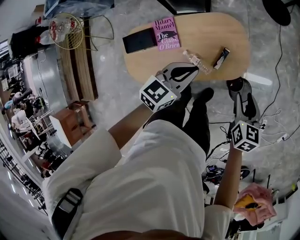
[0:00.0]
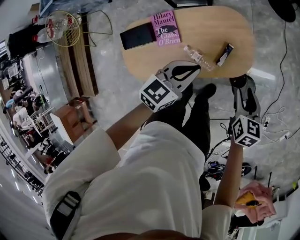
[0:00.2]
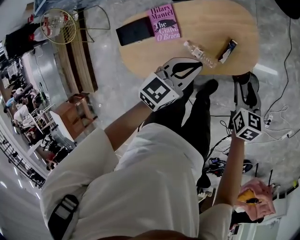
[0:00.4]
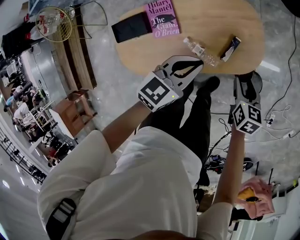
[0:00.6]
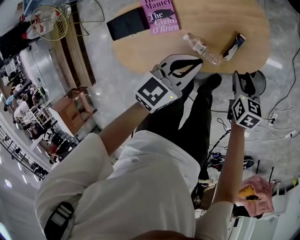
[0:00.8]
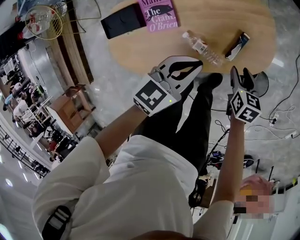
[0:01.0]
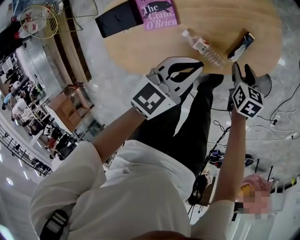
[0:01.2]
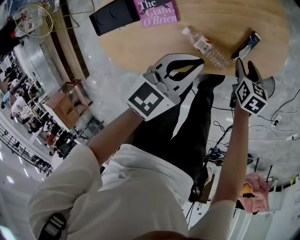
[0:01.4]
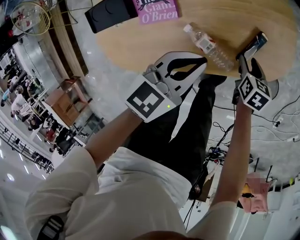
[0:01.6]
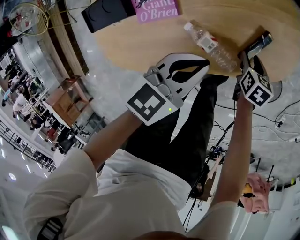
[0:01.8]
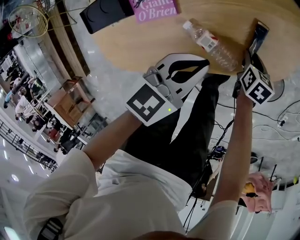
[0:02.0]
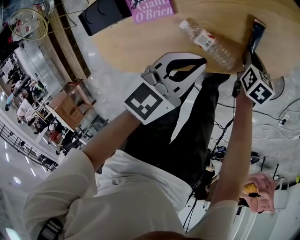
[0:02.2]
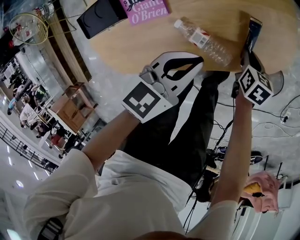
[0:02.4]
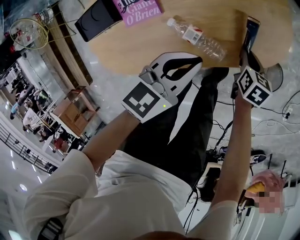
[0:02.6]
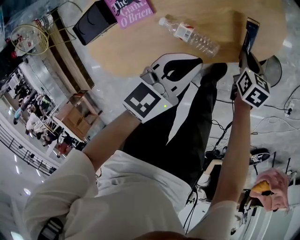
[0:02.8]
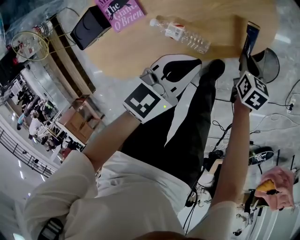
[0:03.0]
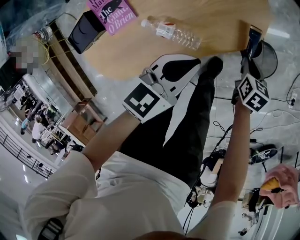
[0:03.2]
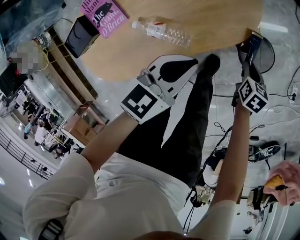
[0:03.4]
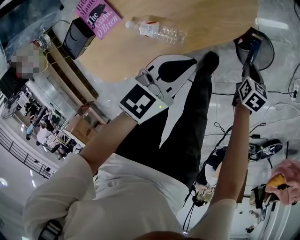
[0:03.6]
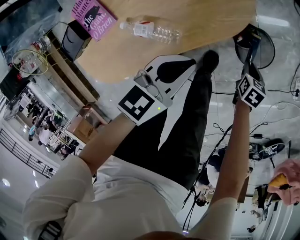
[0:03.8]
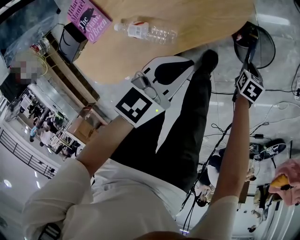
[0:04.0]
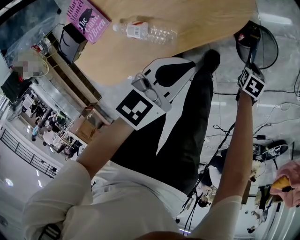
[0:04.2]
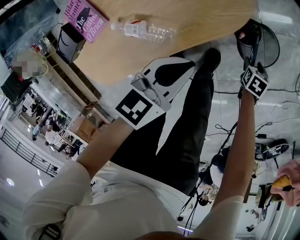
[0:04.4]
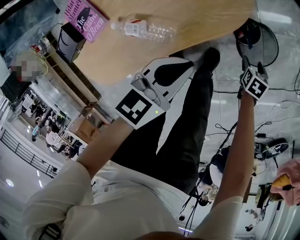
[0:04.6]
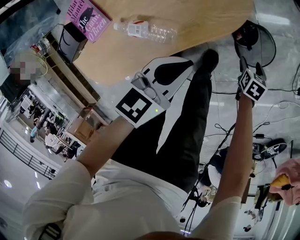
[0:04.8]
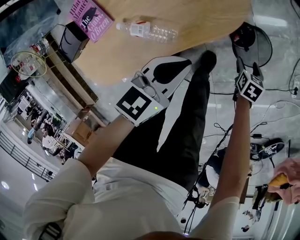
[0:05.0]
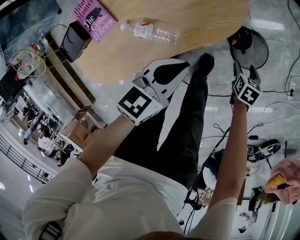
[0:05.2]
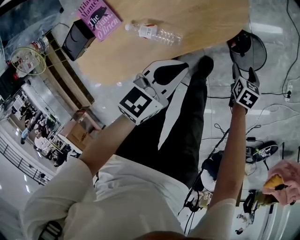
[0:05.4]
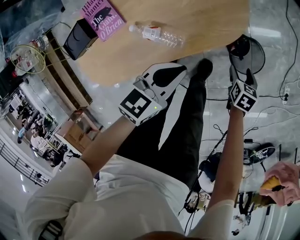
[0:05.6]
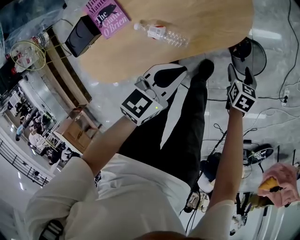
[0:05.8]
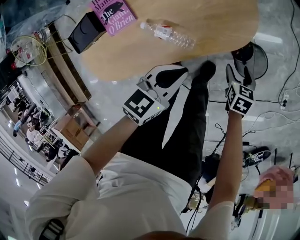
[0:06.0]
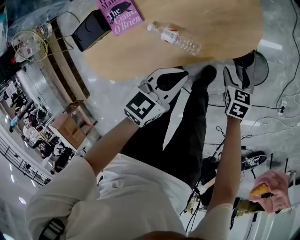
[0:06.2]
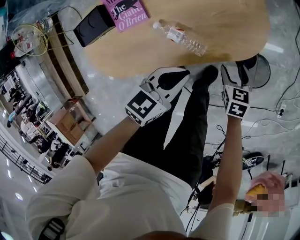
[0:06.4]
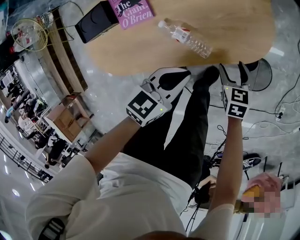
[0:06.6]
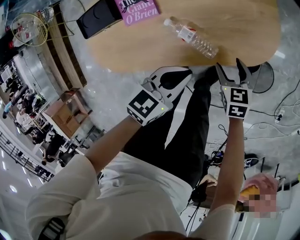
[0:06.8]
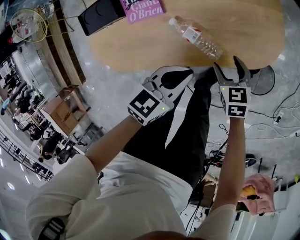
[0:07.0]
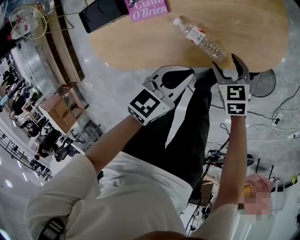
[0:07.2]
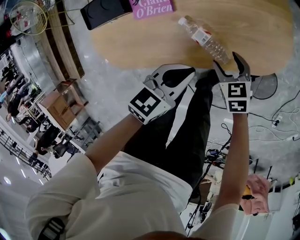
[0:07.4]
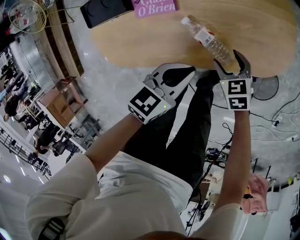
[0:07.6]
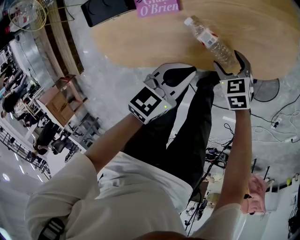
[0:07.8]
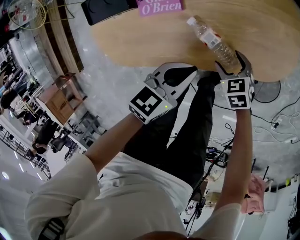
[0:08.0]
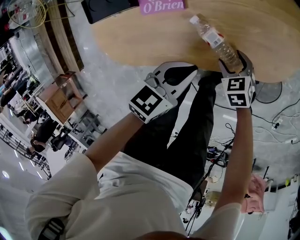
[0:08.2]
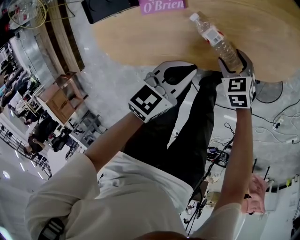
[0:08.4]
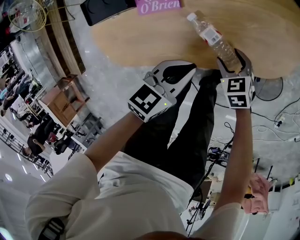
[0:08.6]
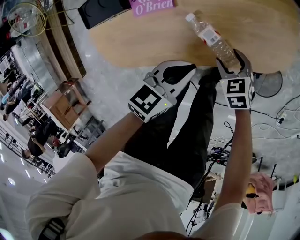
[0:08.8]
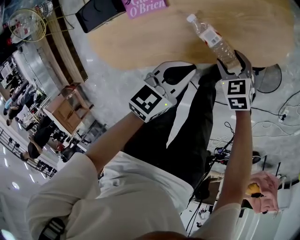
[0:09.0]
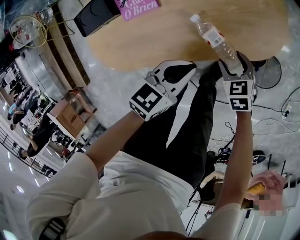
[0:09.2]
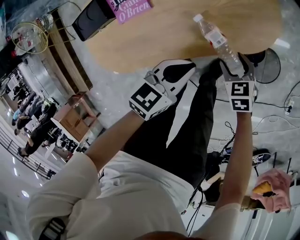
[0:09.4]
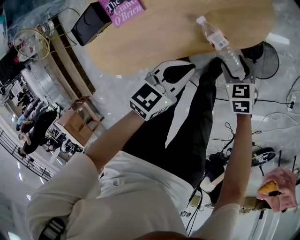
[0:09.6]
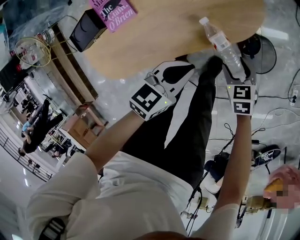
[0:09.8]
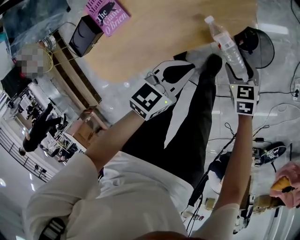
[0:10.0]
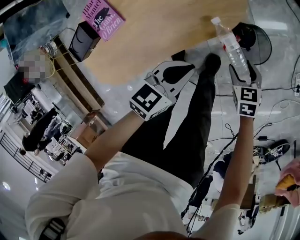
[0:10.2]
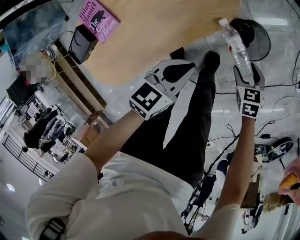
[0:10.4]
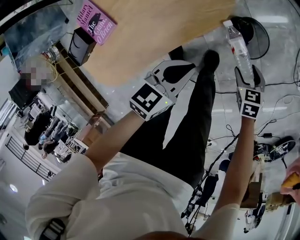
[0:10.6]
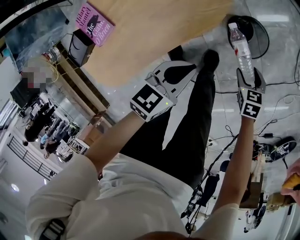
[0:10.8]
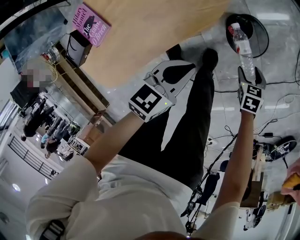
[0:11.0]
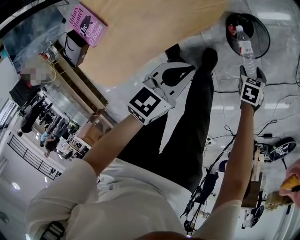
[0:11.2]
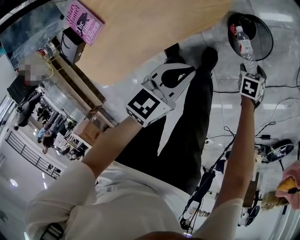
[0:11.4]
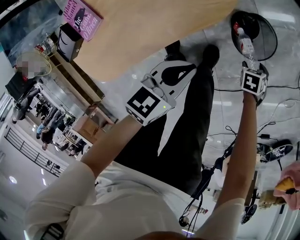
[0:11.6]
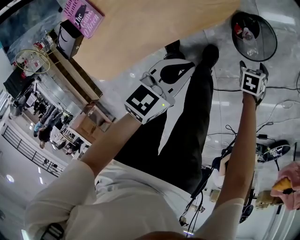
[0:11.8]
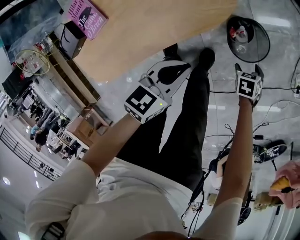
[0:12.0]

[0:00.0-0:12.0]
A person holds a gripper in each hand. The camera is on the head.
0:00.0 to 0:01.6: The left gripper shifts some 25 cm downward. The right gripper travels downward by some 40 cm, and changes its angle by about 20 degrees.
0:01.6 to 0:03.0: Both grippers travel together to the right, some 10 cm. The right gripper closes its fingers.
0:03.0 to 0:04.4: The right gripper moves roughly 25 cm, changes its angle by some 20 degrees, and opens. The left gripper changes place by approximately 10 cm.
0:04.4 to 0:06.0: The left gripper changes place by approximately 10 cm; the right gripper goes about 15 cm upward, and changes its angle by approximately 20 degrees.
0:06.0 to 0:07.6: The right gripper changes place by some 25 cm, and swivels some 40 degrees; the left gripper moves approximately 10 cm.
0:07.6 to 0:09.0: There are only small adjustments of the grippers.
0:09.0 to 0:10.4: The left gripper changes place by some 15 cm, and turns by some 20 degrees. Meanwhile the right gripper changes place by about 30 cm, and rotates approximately 40 degrees.
0:10.4 to 0:12.0: The right gripper goes approximately 10 cm downward, and rotates approximately 20 degrees.

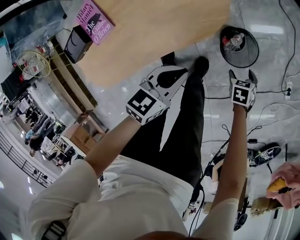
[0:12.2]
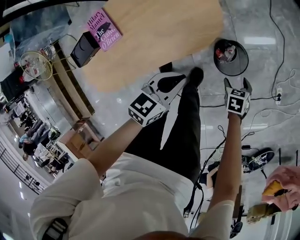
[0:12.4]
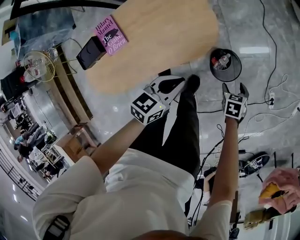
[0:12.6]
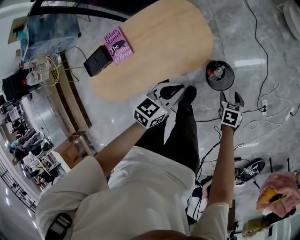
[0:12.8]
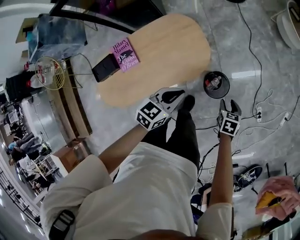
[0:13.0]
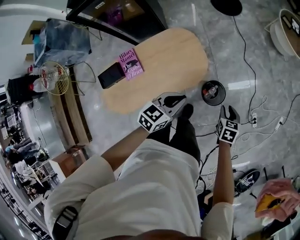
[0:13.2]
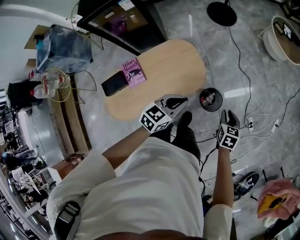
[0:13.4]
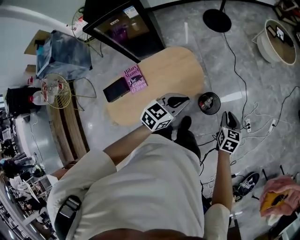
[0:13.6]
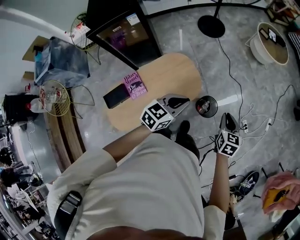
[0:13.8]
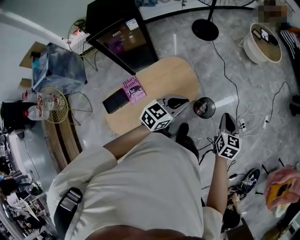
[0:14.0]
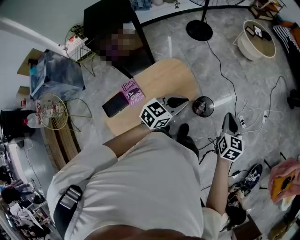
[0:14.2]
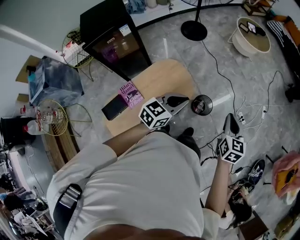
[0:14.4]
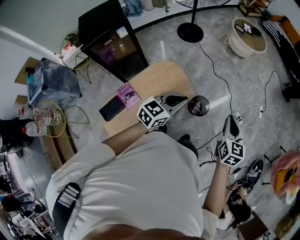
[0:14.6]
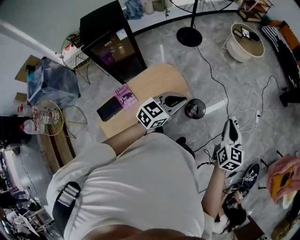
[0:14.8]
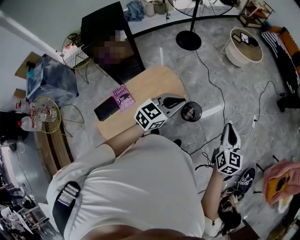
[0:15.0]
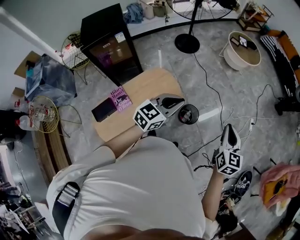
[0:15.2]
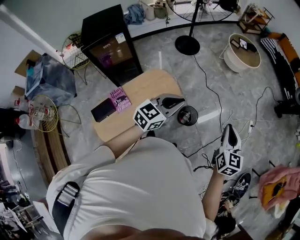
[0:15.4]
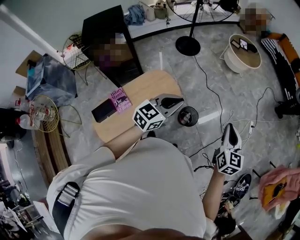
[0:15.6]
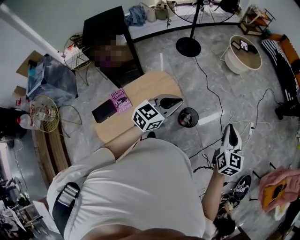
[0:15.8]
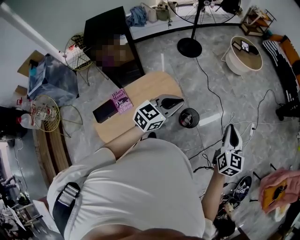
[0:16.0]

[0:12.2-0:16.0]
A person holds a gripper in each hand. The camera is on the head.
0:12.2 to 0:13.4: The grippers both shift upward by some 40 cm. The right gripper turns by approximately 30 degrees, and closes up.
0:13.4 to 0:14.8: The left gripper shifts approximately 20 cm upward, and swivels about 20 degrees, while the right gripper is displaced upward by about 30 cm, and turns by some 30 degrees.
0:14.8 to 0:16.0: The right gripper ends up roughly 5 cm from where it was.

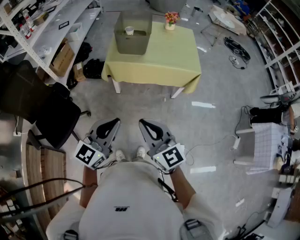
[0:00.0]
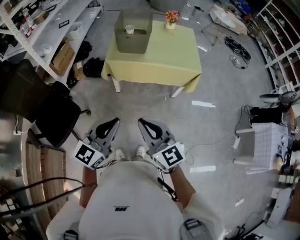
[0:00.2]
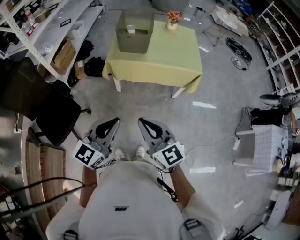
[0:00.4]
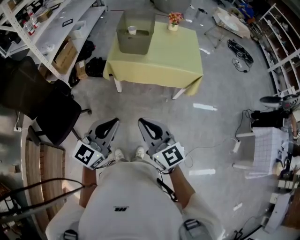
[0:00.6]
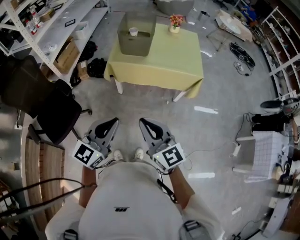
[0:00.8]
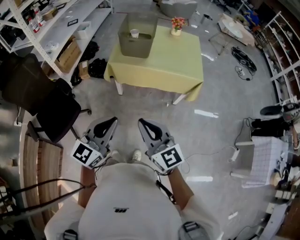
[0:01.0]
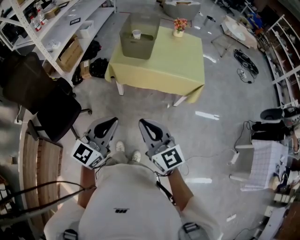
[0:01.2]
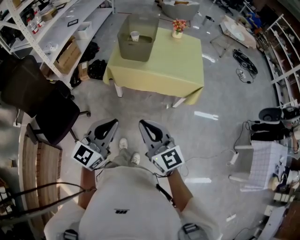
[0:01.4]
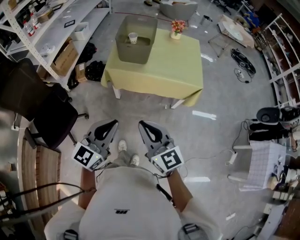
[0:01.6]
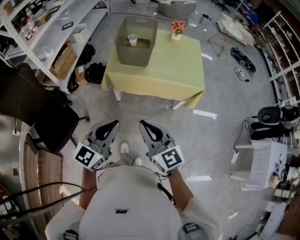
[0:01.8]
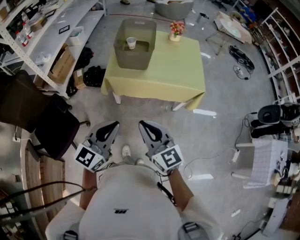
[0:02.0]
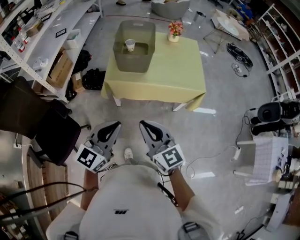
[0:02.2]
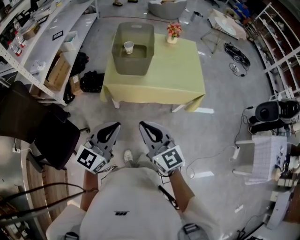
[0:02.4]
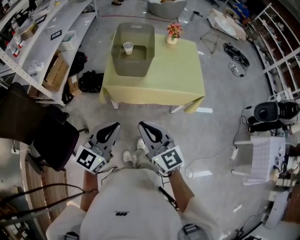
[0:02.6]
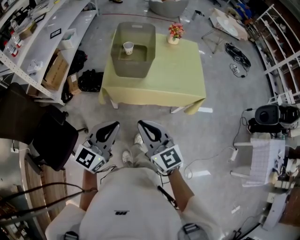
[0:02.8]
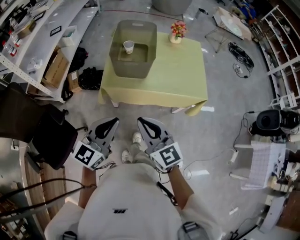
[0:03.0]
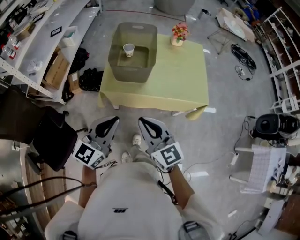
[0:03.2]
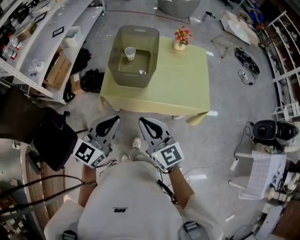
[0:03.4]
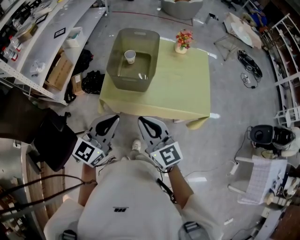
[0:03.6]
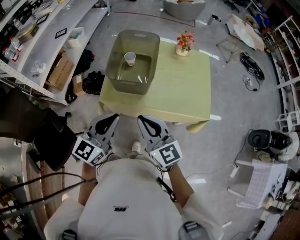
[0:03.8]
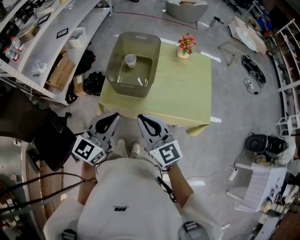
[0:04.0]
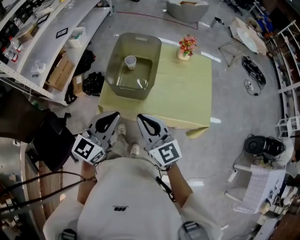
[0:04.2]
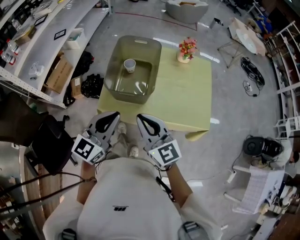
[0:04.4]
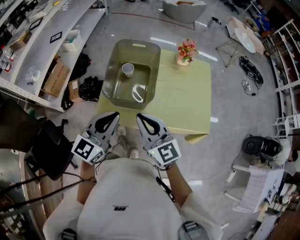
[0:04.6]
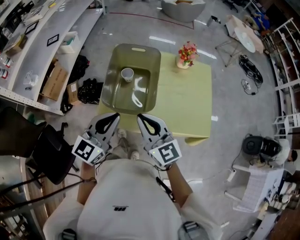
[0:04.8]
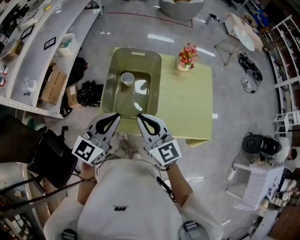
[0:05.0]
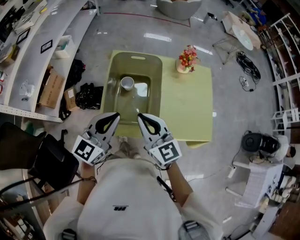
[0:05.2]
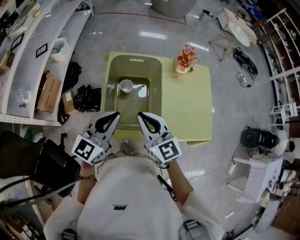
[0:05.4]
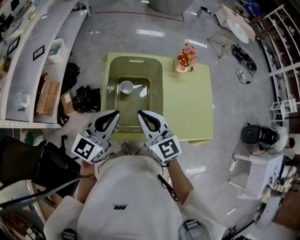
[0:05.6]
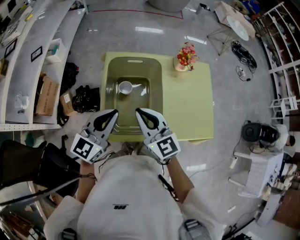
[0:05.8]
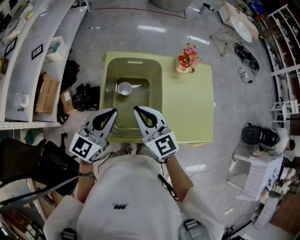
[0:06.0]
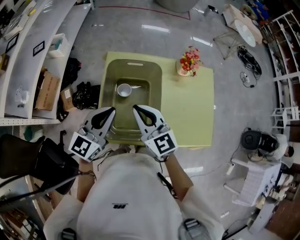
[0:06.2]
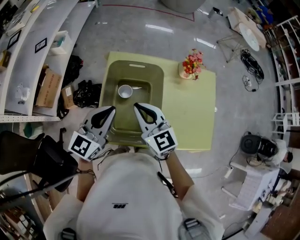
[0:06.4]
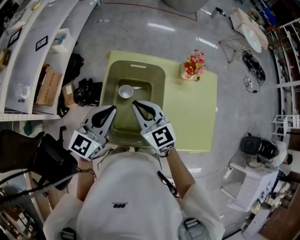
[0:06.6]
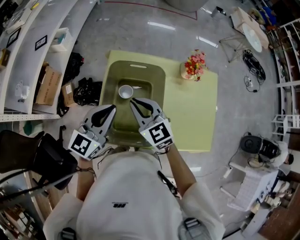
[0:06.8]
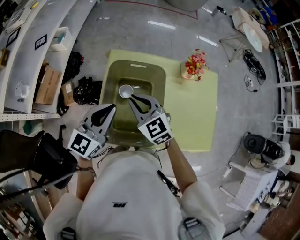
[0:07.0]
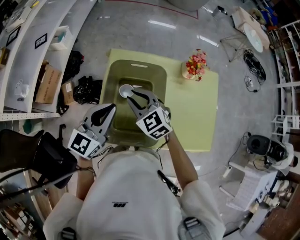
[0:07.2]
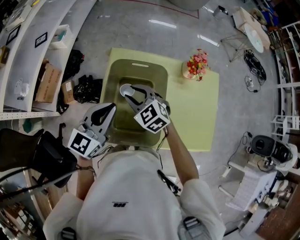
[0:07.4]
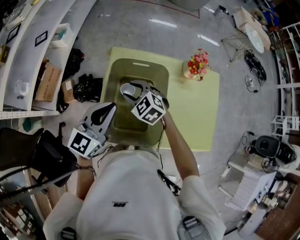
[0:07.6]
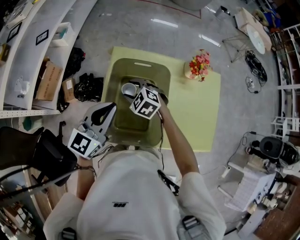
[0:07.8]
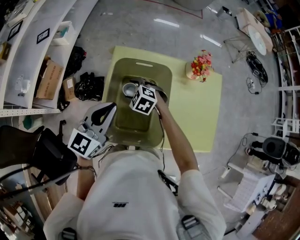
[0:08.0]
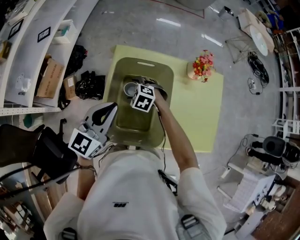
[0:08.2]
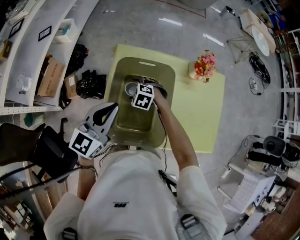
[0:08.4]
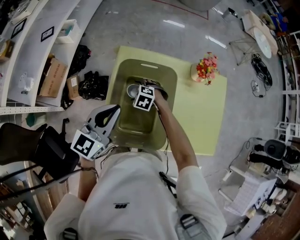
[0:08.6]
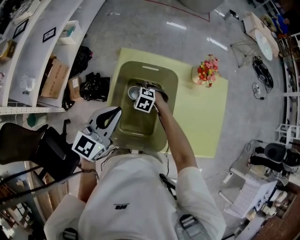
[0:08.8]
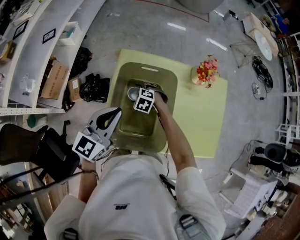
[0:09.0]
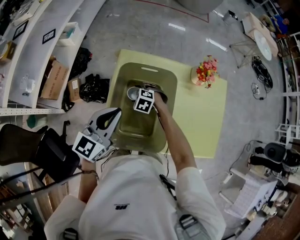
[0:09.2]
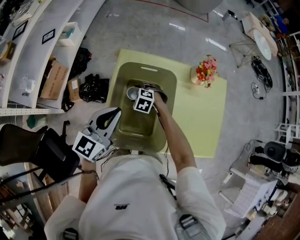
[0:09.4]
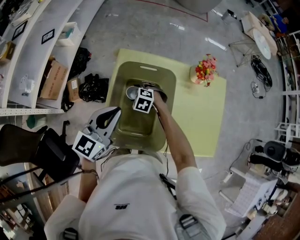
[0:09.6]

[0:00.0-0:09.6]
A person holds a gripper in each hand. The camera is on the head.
0:00.0 to 0:01.6: The grippers both shift forward by approximately 10 cm.
0:01.6 to 0:03.2: Both grippers travel together forward, about 25 cm.
0:03.2 to 0:04.8: The grippers both shift forward by about 25 cm.
0:04.8 to 0:06.4: The grippers both shift forward by about 20 cm.
0:06.4 to 0:08.0: The right gripper travels downward and forward by roughly 20 cm, tips its fingers downward by some 50 degrees, and opens up.
0:08.0 to 0:09.6: The right gripper travels downward by roughly 10 cm.
